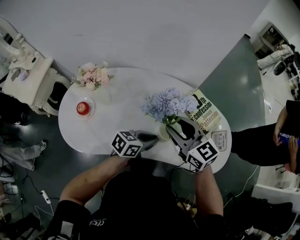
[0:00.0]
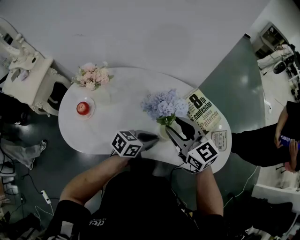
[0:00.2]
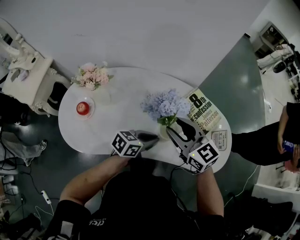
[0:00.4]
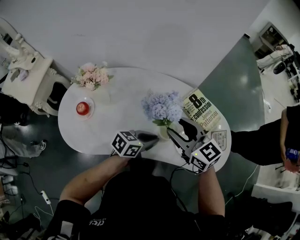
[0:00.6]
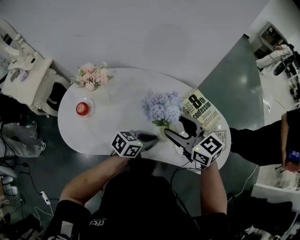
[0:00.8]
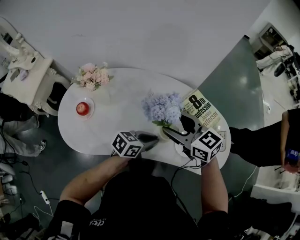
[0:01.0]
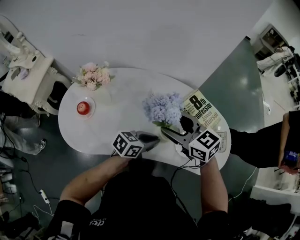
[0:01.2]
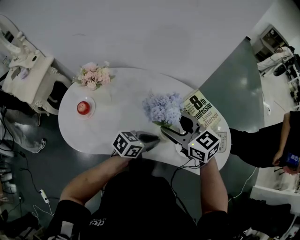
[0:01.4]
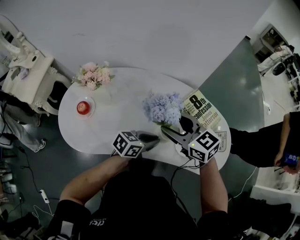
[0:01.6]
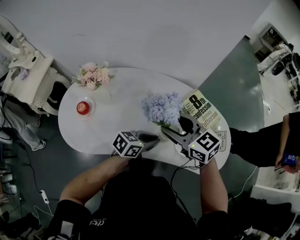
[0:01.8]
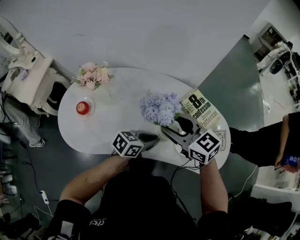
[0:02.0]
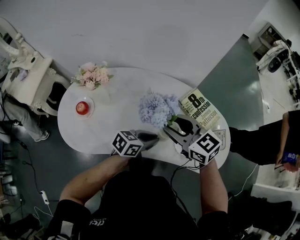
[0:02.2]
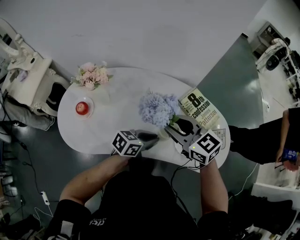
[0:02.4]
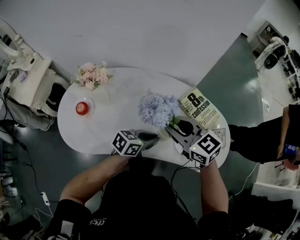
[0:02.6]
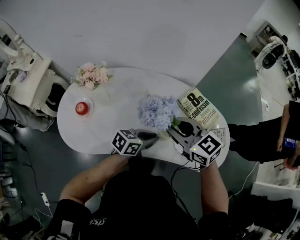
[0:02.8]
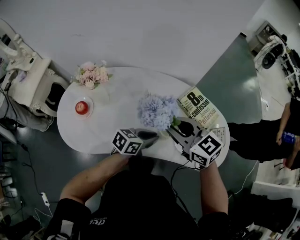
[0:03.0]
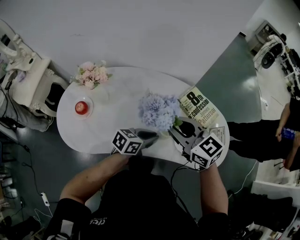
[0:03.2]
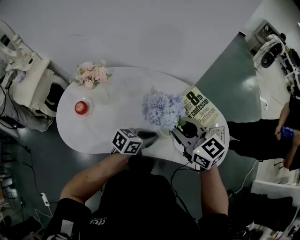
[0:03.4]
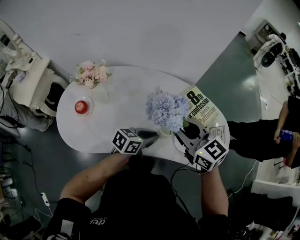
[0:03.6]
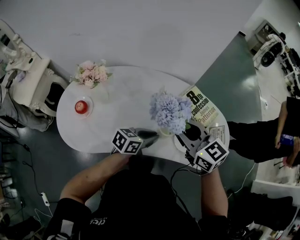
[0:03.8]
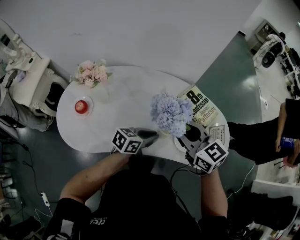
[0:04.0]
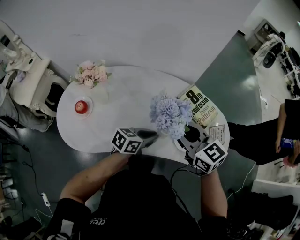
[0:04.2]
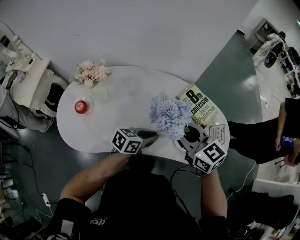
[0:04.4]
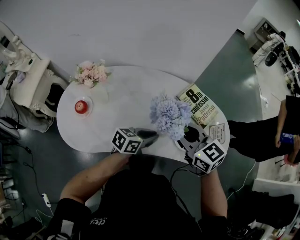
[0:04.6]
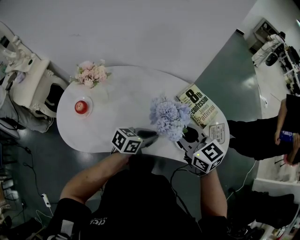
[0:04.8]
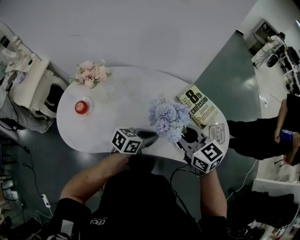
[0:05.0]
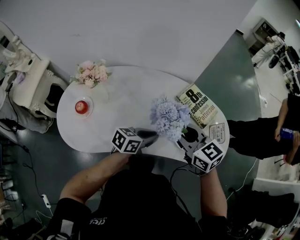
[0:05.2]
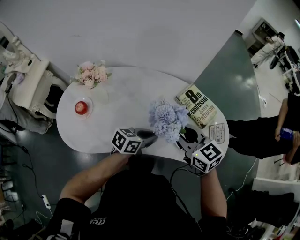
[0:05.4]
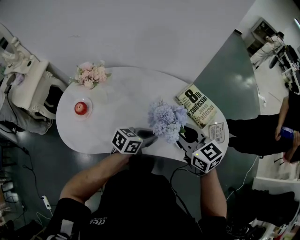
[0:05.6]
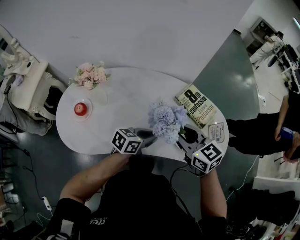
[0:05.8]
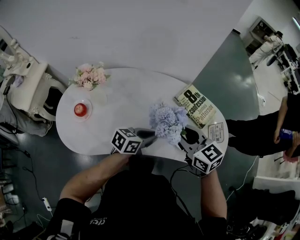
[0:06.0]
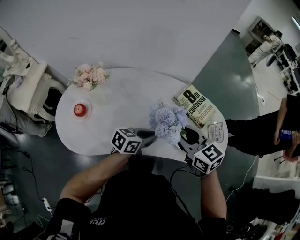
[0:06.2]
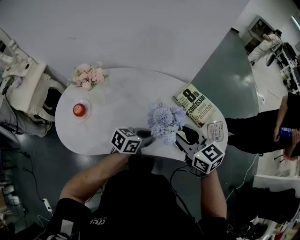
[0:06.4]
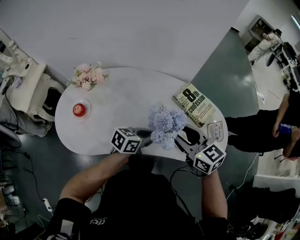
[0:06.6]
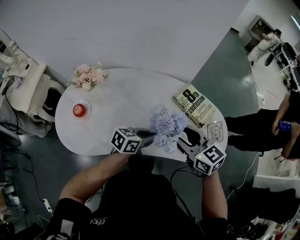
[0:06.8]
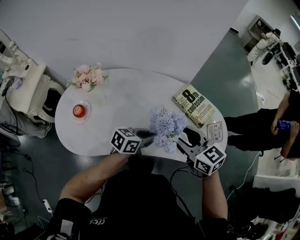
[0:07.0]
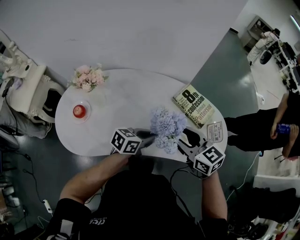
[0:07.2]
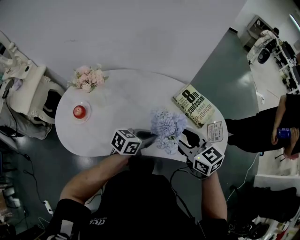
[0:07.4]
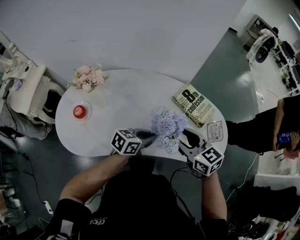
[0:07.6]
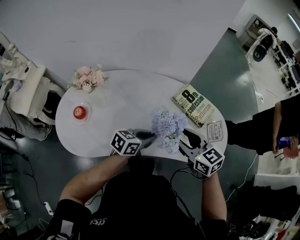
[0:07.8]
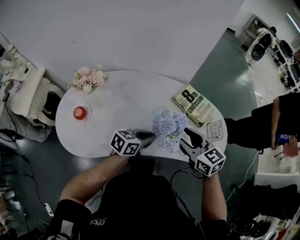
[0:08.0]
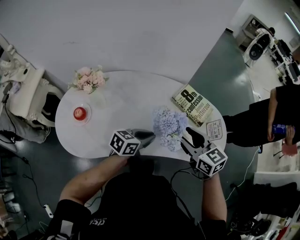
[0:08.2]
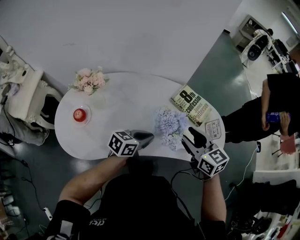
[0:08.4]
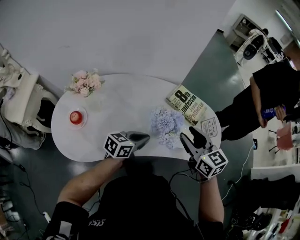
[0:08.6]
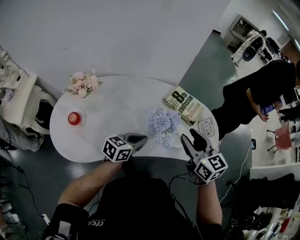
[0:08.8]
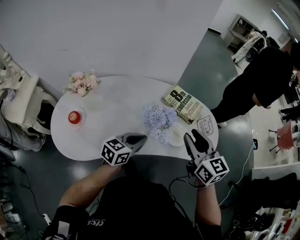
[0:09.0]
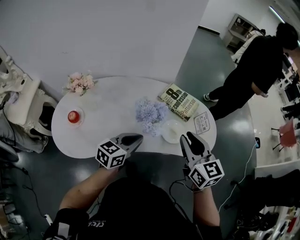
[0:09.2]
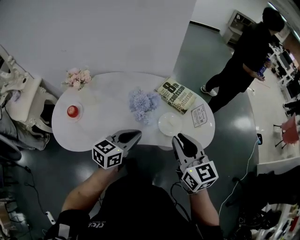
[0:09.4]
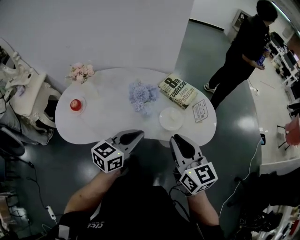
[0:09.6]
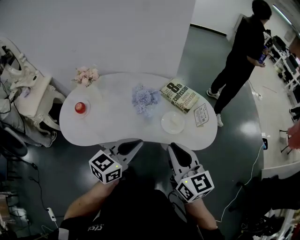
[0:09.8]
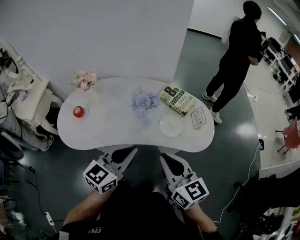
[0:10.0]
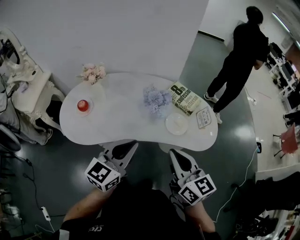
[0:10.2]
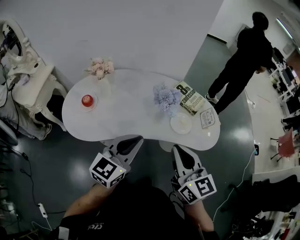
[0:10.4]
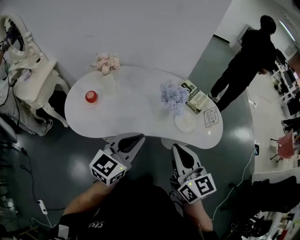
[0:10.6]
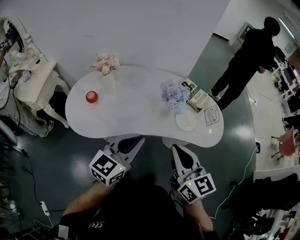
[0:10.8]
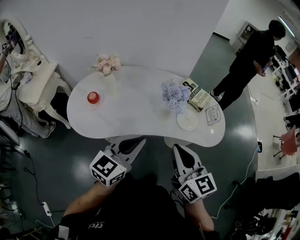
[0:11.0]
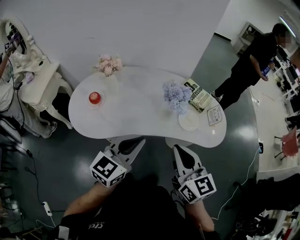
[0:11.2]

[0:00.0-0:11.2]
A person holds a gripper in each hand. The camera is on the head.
0.0 to 1.6 s: The right gripper opens its fingers.
1.6 to 3.2 s: The right gripper closes its fingers.
3.2 to 4.8 s: The grippers stay close to where they were, moving slightly.
4.8 to 8.0 s: There are only small adjustments of the grippers.
8.0 to 9.6 s: The right gripper moves backward, to the right and upward, about 20 cm, swivels some 20 degrees, and closes its fingers; the left gripper is displaced upward, backward and to the right by roughly 20 cm, and swivels about 20 degrees.
9.6 to 11.2 s: The right gripper travels to the left and backward by about 15 cm; the left gripper is displaced to the left, backward and upward by about 15 cm.

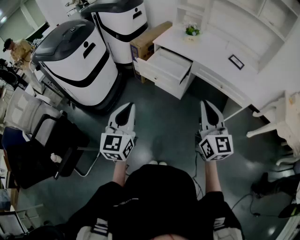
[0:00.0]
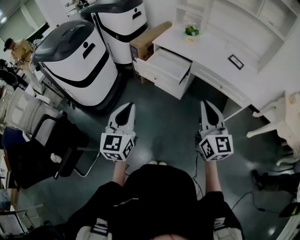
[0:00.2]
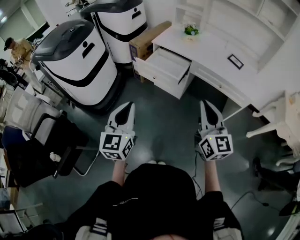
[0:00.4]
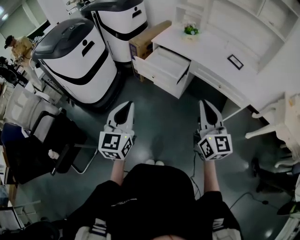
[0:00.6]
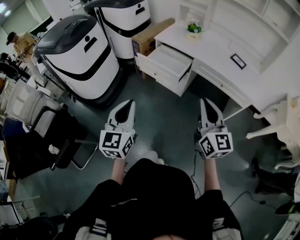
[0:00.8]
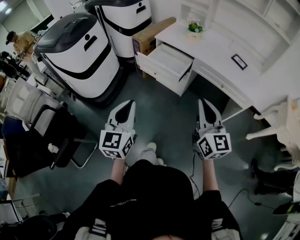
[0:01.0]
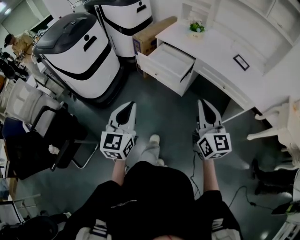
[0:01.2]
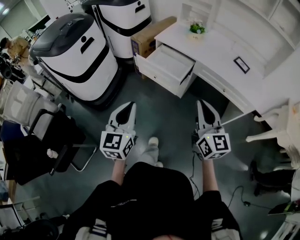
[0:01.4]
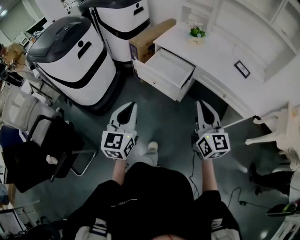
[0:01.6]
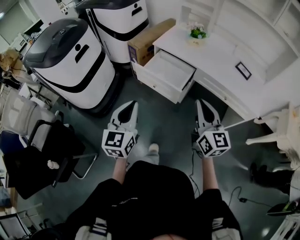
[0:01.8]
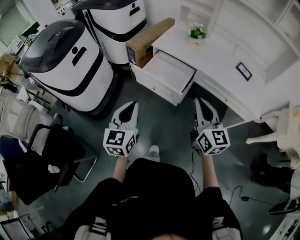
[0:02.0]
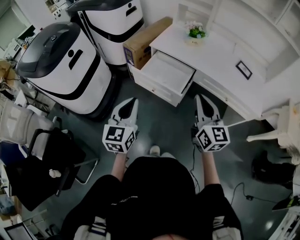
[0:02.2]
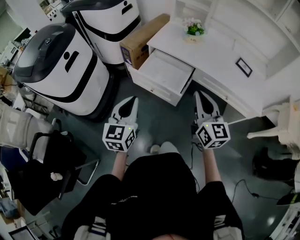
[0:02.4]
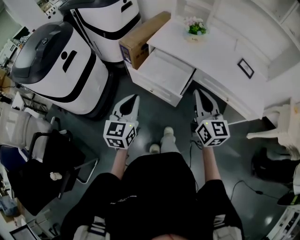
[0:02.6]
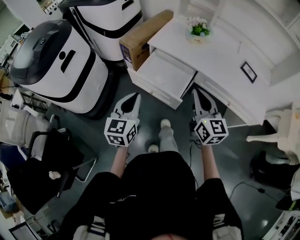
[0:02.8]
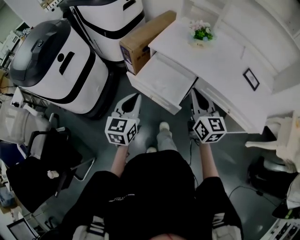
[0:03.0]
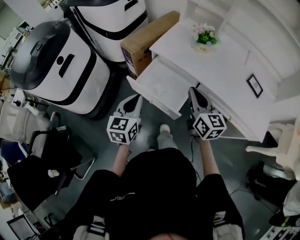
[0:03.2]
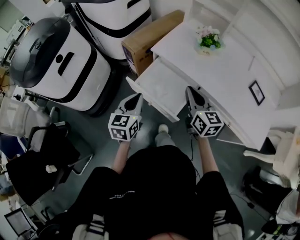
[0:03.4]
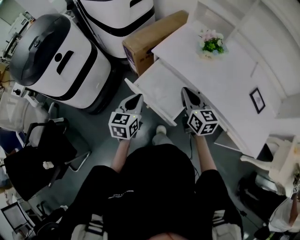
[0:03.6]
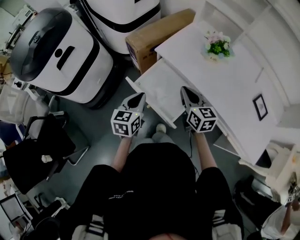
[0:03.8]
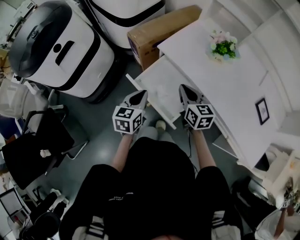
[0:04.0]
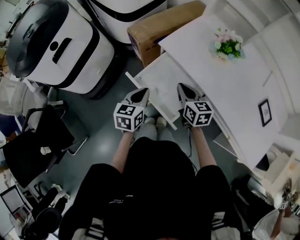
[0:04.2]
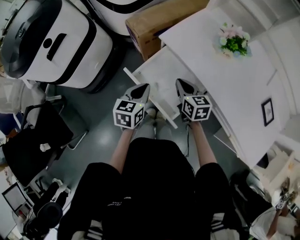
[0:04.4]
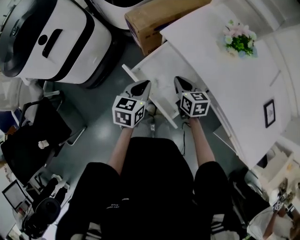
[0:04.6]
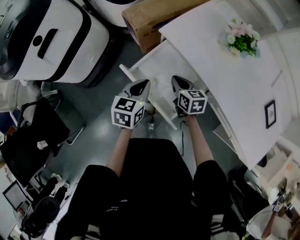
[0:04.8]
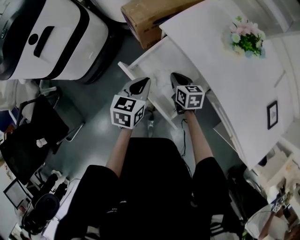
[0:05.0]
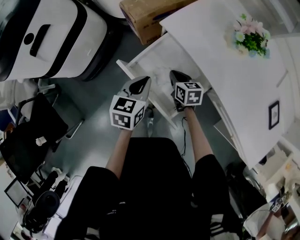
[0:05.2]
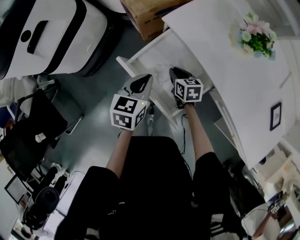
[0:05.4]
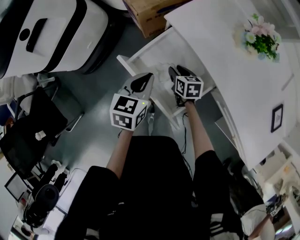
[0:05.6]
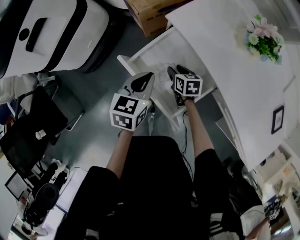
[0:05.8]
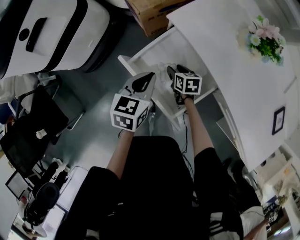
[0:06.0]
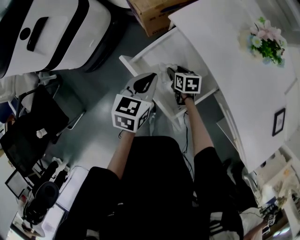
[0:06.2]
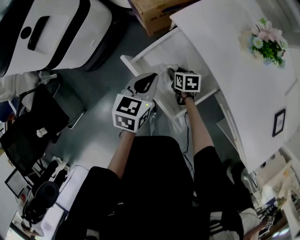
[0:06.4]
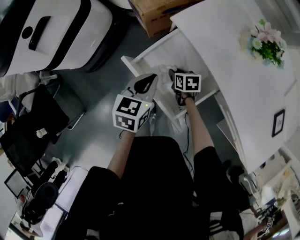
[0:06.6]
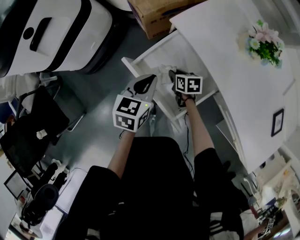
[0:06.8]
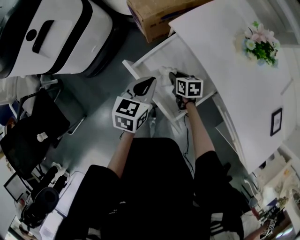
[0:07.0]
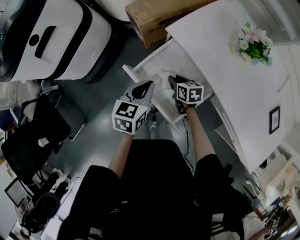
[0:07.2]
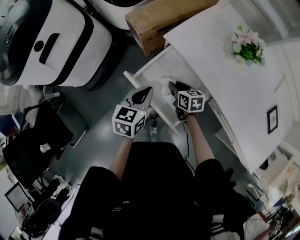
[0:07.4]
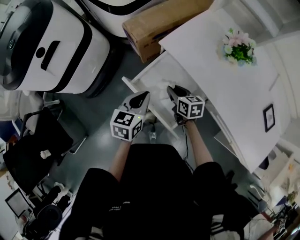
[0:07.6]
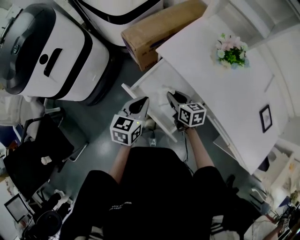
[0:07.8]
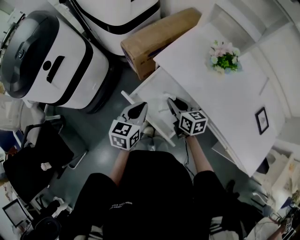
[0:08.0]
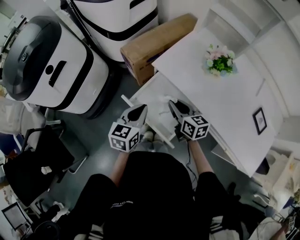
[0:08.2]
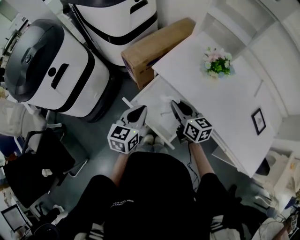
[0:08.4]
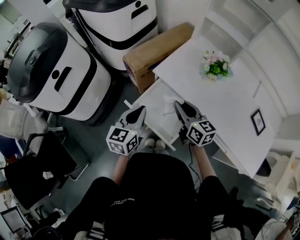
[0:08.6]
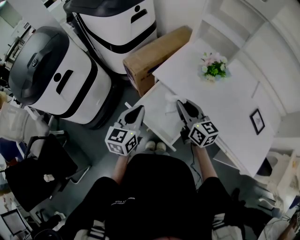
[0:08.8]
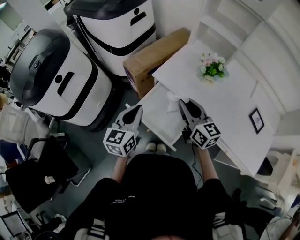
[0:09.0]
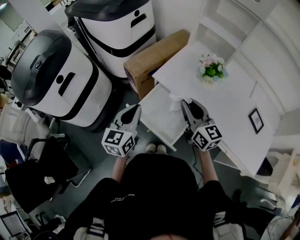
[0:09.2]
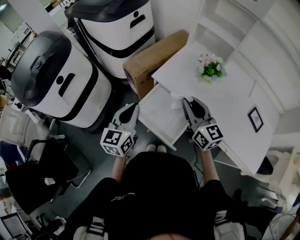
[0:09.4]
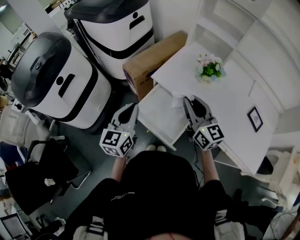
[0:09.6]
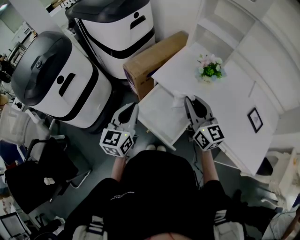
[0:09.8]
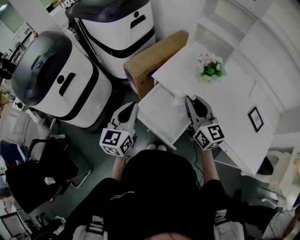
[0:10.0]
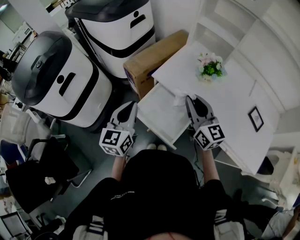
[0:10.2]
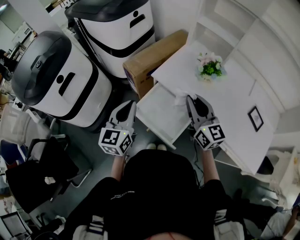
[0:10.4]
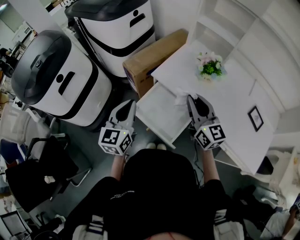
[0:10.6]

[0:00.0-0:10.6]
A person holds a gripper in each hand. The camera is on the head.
0.0 to 1.6 s: The two grippers go about 10 cm forward.
1.6 to 3.0 s: Both grippers travel together forward, about 25 cm.
3.0 to 4.6 s: The right gripper is displaced downward and forward by some 30 cm, and swivels roughly 40 degrees; the left gripper is displaced forward and downward by about 20 cm, and rotates roughly 20 degrees.
4.6 to 6.0 s: The right gripper heads downward, covering approximately 15 cm, and opens.
6.0 to 7.6 s: The right gripper travels upward by some 10 cm, and closes its fingers.
7.6 to 9.0 s: The right gripper travels upward by some 25 cm, and tilts its fingers some 30 degrees upward; the left gripper moves upward, roughly 15 cm, and turns by roughly 20 degrees.
9.0 to 10.6 s: The right gripper ends up roughly 5 cm from where it was.

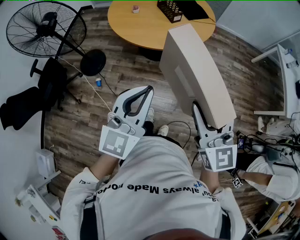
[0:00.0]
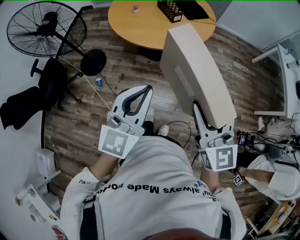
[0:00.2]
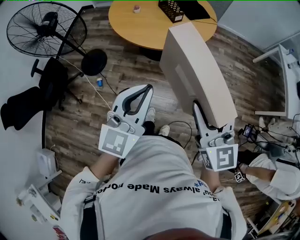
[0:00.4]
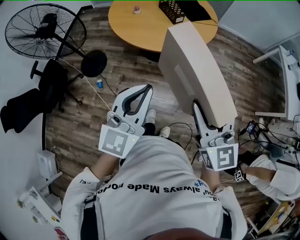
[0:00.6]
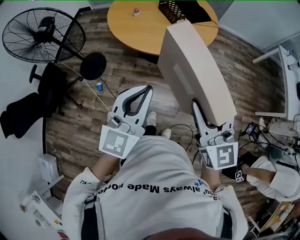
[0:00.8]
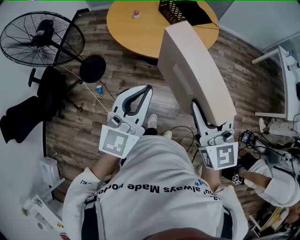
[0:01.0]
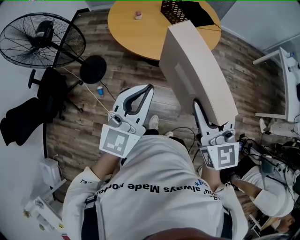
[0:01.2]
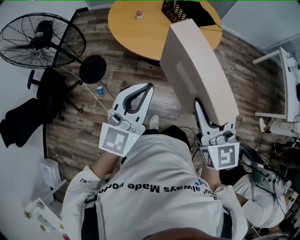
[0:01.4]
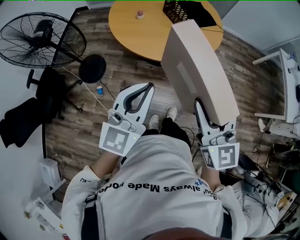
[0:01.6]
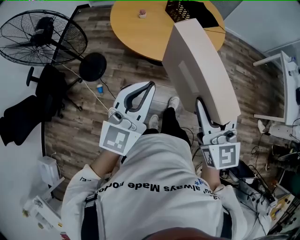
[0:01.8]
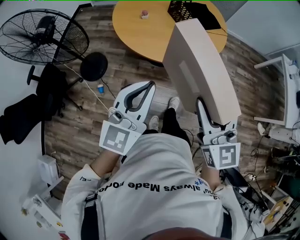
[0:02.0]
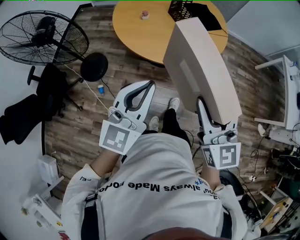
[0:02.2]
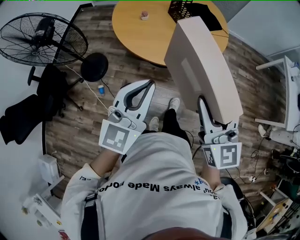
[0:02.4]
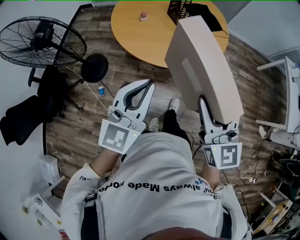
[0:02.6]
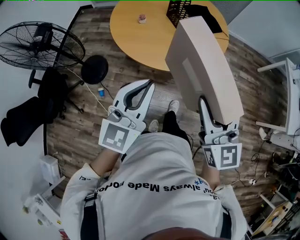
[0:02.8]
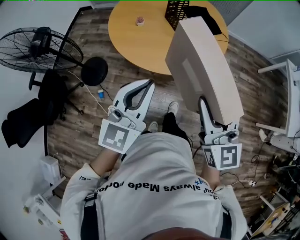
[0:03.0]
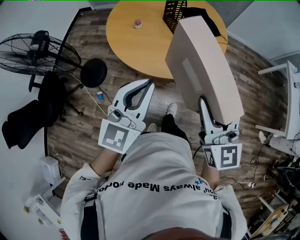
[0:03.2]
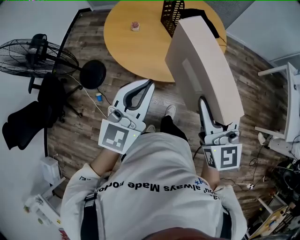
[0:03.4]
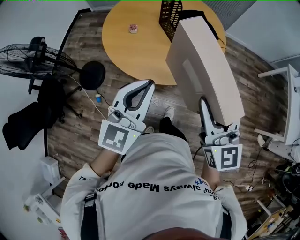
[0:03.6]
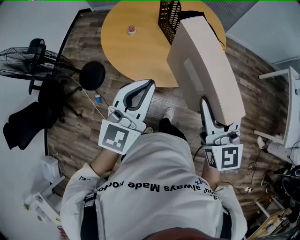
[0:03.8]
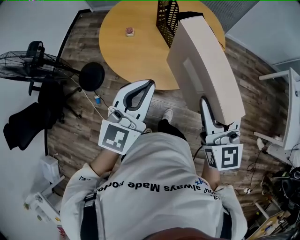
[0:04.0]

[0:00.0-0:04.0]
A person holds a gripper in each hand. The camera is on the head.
0.0 to 1.4 s: Both grippers move forward and to the left, roughly 15 cm.
1.4 to 2.6 s: Both grippers move forward, roughly 10 cm.
2.6 to 4.0 s: Both grippers move forward and to the right, approximately 20 cm.
